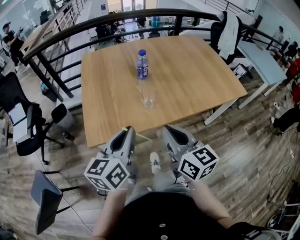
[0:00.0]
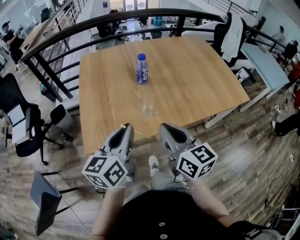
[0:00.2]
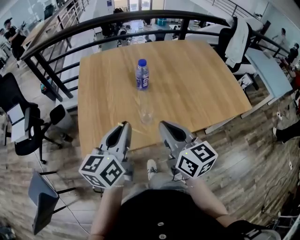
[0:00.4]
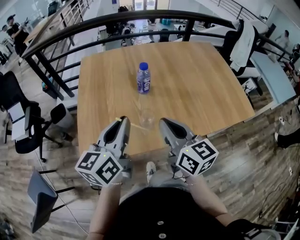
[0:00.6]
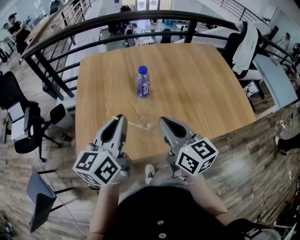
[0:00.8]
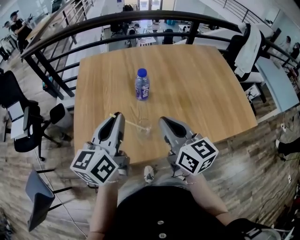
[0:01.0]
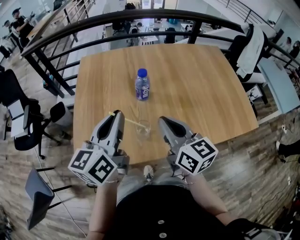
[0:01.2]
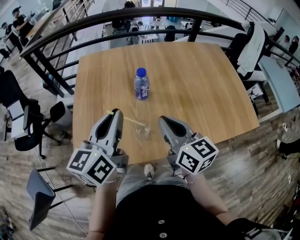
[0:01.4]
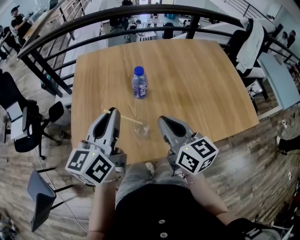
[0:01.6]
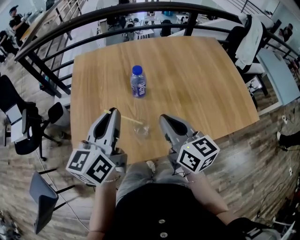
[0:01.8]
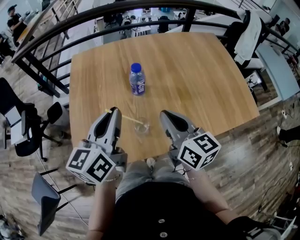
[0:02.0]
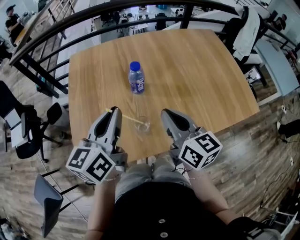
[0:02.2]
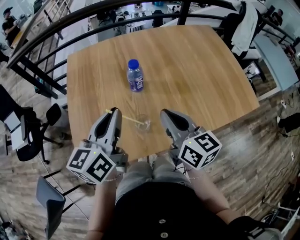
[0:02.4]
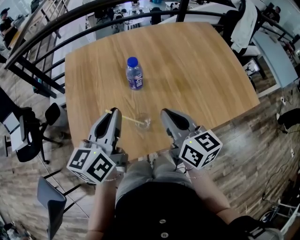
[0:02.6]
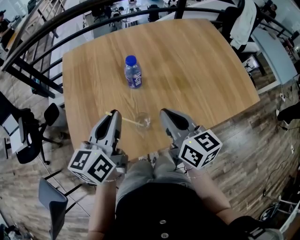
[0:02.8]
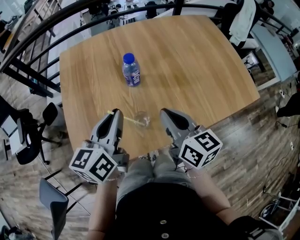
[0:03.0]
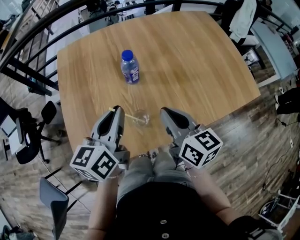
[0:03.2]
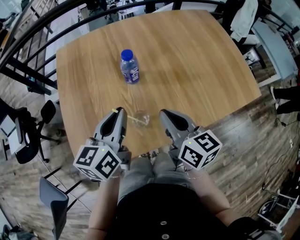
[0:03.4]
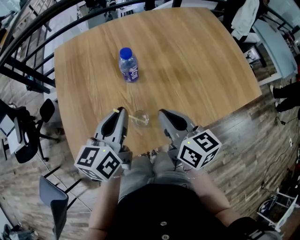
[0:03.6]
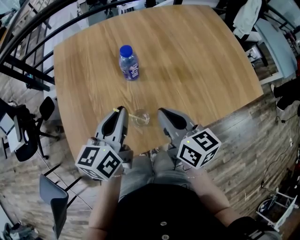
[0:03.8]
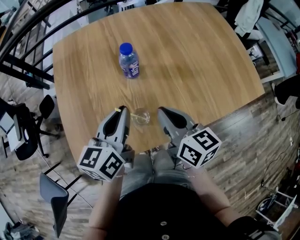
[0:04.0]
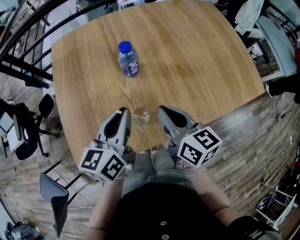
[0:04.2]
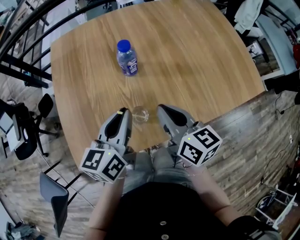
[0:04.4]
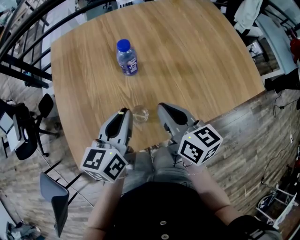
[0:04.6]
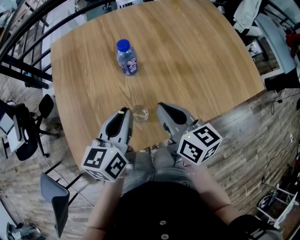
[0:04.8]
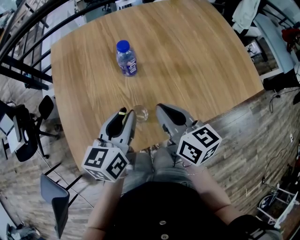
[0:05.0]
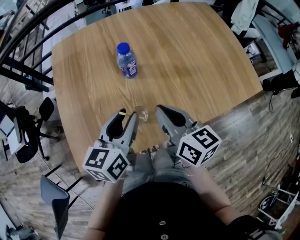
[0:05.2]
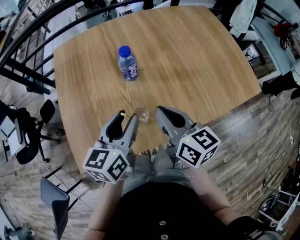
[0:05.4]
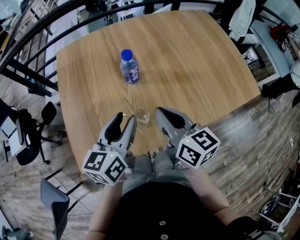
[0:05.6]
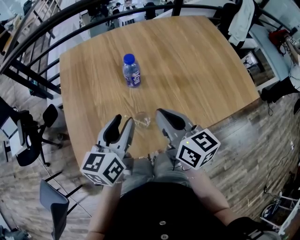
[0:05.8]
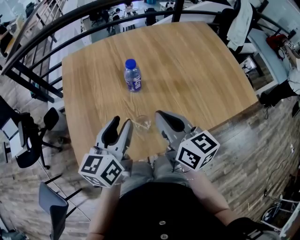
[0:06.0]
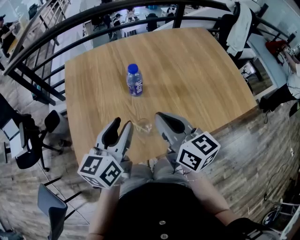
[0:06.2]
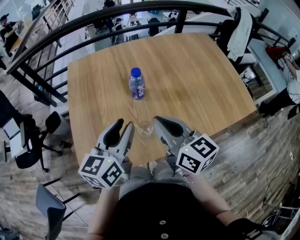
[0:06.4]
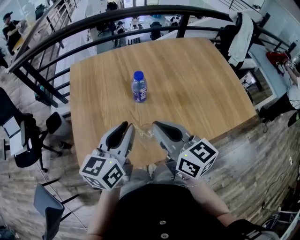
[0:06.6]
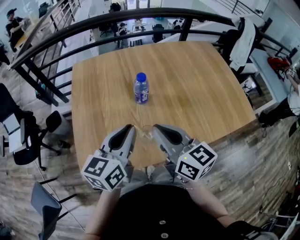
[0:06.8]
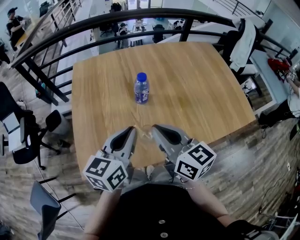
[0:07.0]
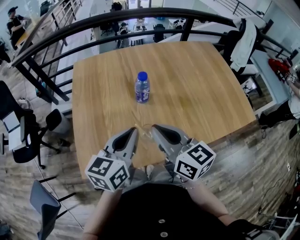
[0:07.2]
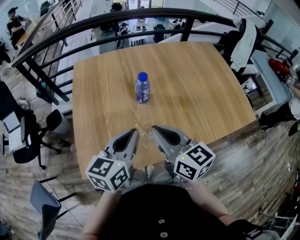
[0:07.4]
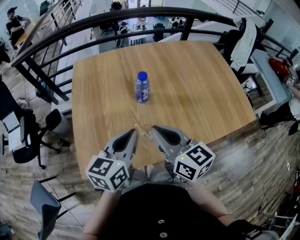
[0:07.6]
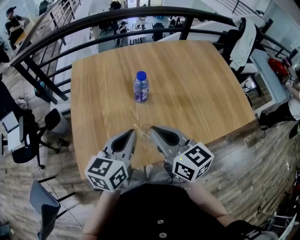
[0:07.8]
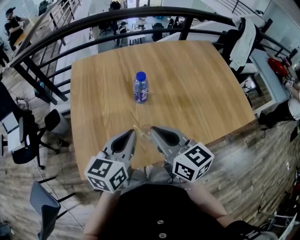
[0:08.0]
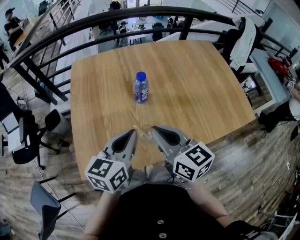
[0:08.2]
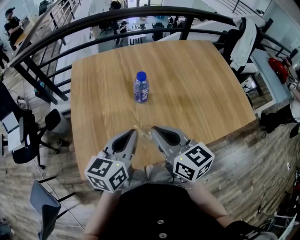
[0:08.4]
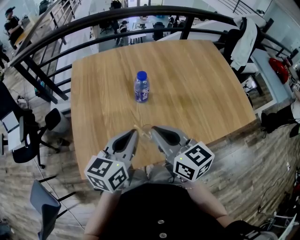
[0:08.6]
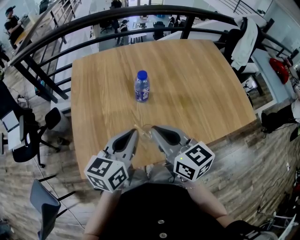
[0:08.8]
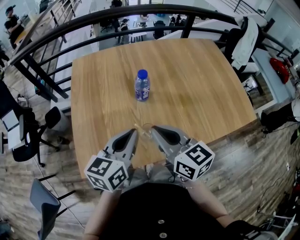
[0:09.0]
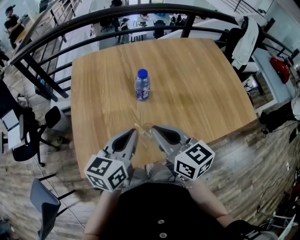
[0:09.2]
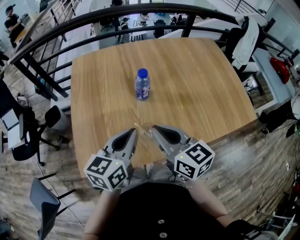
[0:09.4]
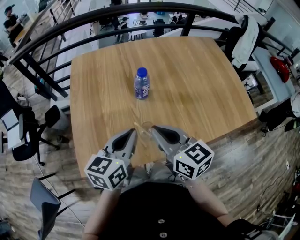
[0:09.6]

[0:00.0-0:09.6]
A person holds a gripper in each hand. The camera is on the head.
0:00.0 to 0:01.6: Both grippers move forward, roughly 25 cm.
0:01.6 to 0:03.2: The left gripper heads downward, covering approximately 5 cm.
0:03.2 to 0:04.8: The left gripper goes some 5 cm downward.
0:04.8 to 0:06.4: The grippers both shift upward by about 10 cm. The left gripper opens.
0:06.4 to 0:08.0: The left gripper closes.
0:08.0 to 0:09.6: The grippers stay close to where they were, moving slightly.

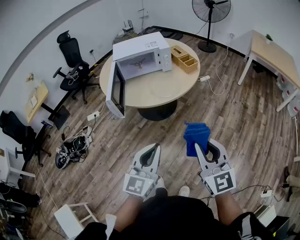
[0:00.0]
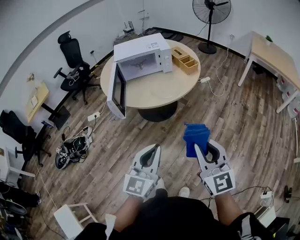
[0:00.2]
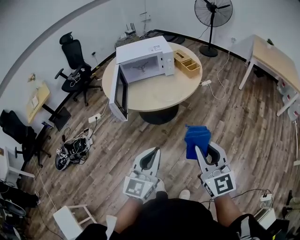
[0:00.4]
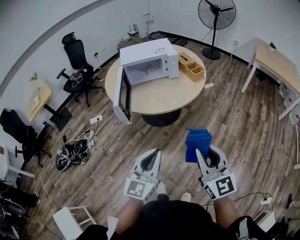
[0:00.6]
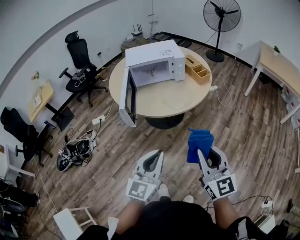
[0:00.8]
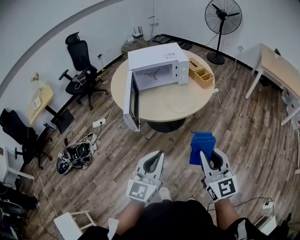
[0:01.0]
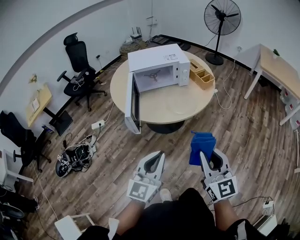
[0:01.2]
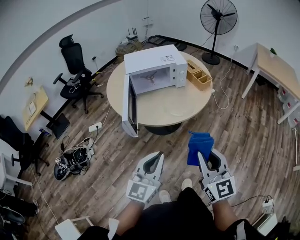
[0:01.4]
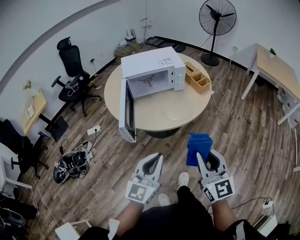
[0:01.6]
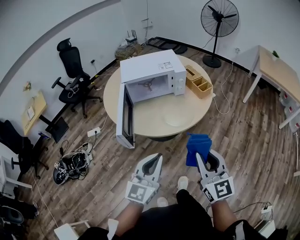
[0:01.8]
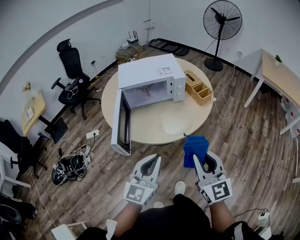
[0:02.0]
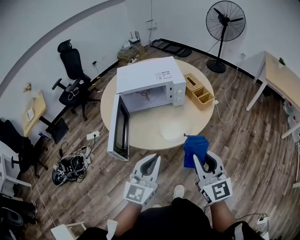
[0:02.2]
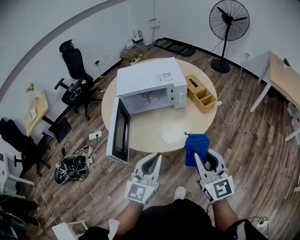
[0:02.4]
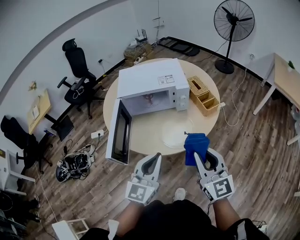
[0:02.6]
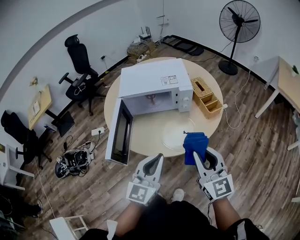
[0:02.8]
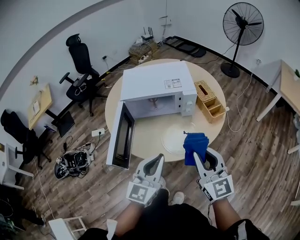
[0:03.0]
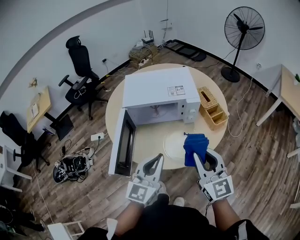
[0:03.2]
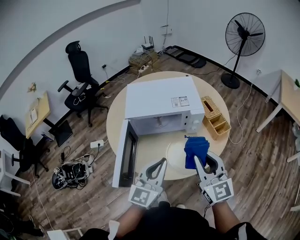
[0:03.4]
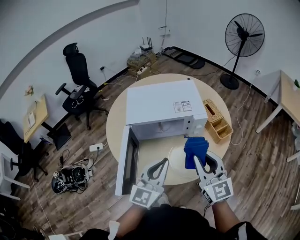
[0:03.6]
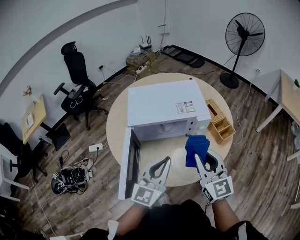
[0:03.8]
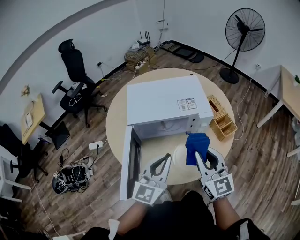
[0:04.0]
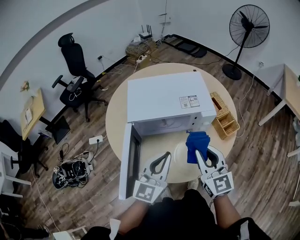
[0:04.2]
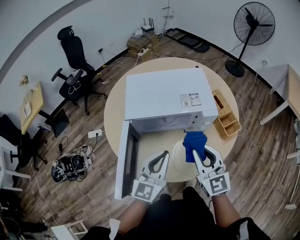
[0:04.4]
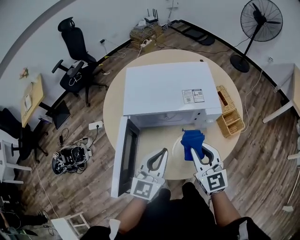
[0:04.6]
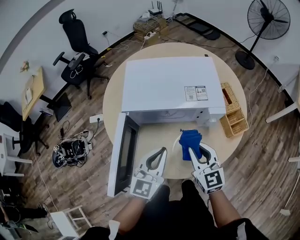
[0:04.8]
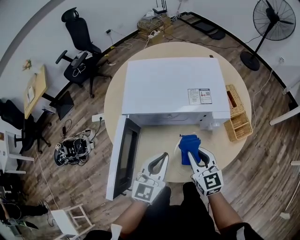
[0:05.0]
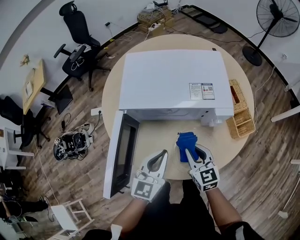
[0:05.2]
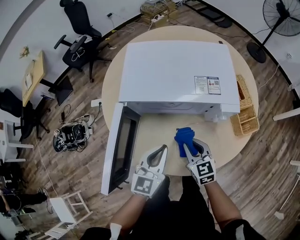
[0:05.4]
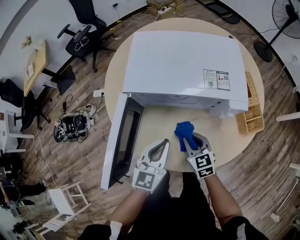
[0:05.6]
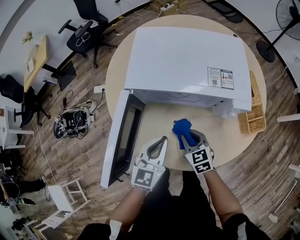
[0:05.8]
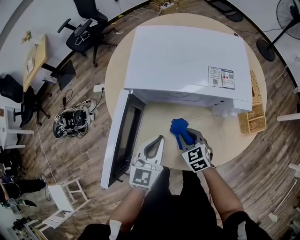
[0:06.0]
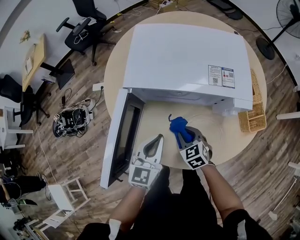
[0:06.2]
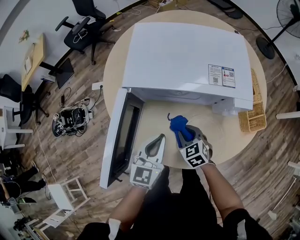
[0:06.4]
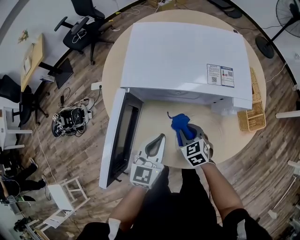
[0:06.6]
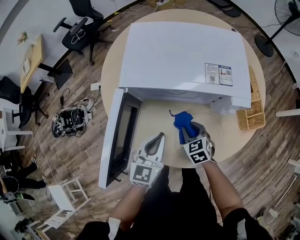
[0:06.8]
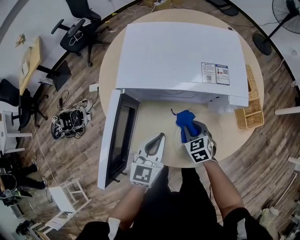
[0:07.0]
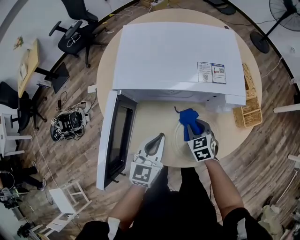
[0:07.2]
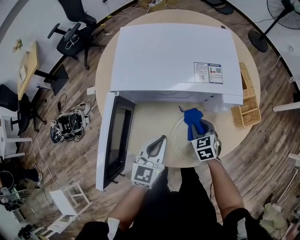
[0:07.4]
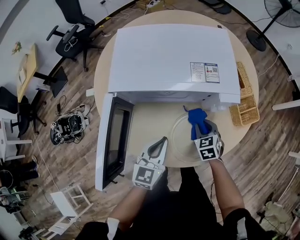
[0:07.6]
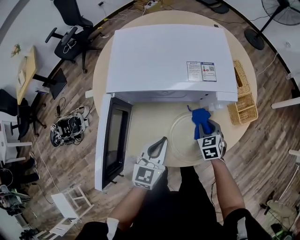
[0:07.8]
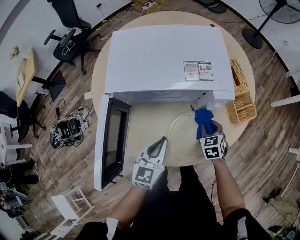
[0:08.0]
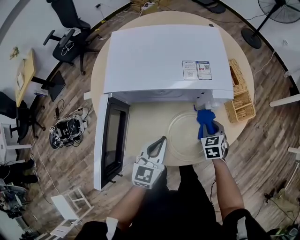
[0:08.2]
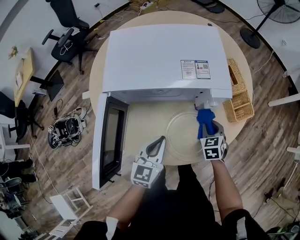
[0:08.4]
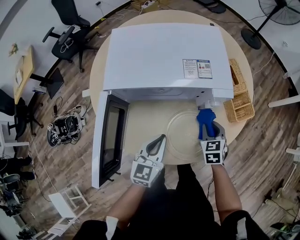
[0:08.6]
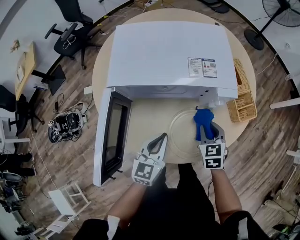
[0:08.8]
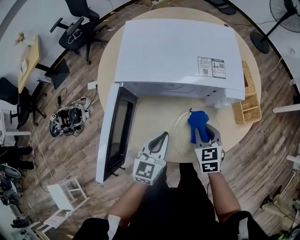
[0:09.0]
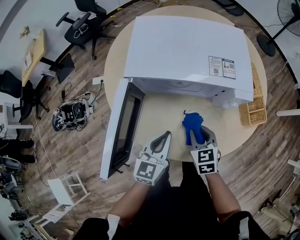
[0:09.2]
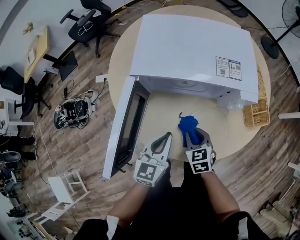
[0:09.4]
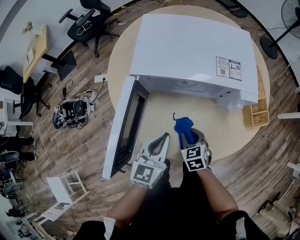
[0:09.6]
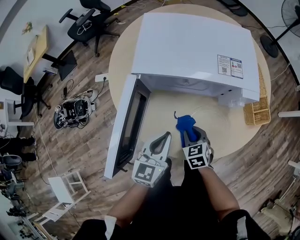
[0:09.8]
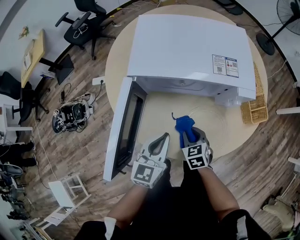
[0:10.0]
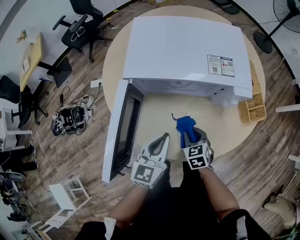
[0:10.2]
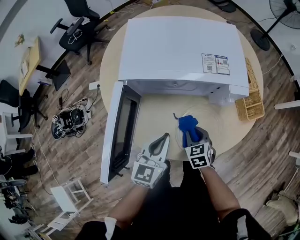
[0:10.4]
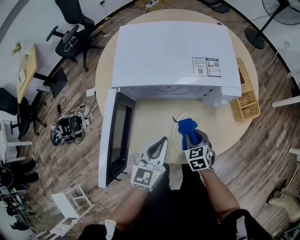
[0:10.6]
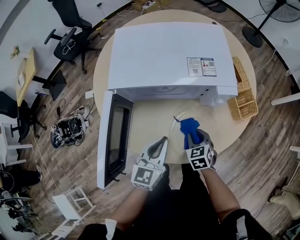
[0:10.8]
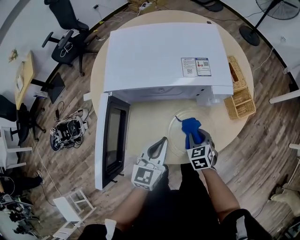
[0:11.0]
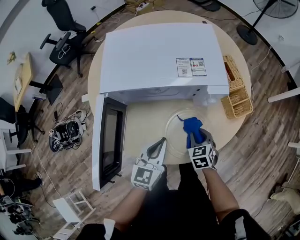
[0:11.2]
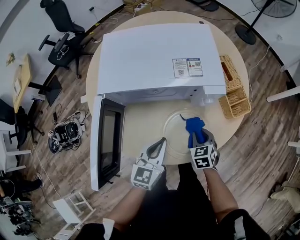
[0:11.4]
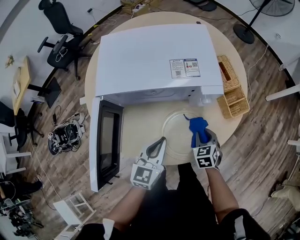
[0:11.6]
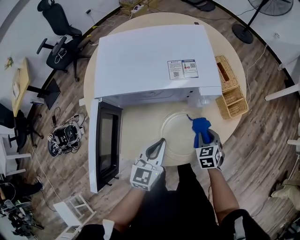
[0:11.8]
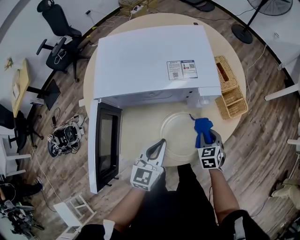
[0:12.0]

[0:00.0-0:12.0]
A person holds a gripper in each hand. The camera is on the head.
0:00.0 to 0:01.6: The grippers both shift forward and to the left by about 15 cm.
0:01.6 to 0:03.0: The two grippers go roughly 25 cm forward.
0:03.0 to 0:04.4: The right gripper shifts some 20 cm forward and to the left. Meanwhile the left gripper goes approximately 15 cm forward.
0:04.4 to 0:06.0: The right gripper is displaced downward by roughly 25 cm, and tilts its fingers about 30 degrees downward. The left gripper shifts some 15 cm downward, and changes its angle by about 20 degrees.
0:06.0 to 0:07.6: The right gripper moves to the right, roughly 15 cm, and changes its angle by some 20 degrees, while the left gripper goes some 5 cm to the right.
0:07.6 to 0:09.0: The right gripper is displaced upward by some 5 cm, and reaches about 5 cm to the right, then returns.
0:09.0 to 0:10.4: The right gripper moves downward, about 5 cm.
0:10.4 to 0:12.0: The right gripper travels to the right by about 15 cm. Meanwhile the left gripper moves to the right, some 5 cm.

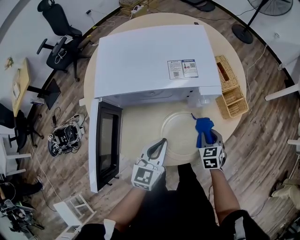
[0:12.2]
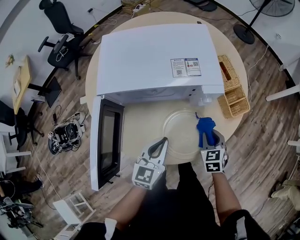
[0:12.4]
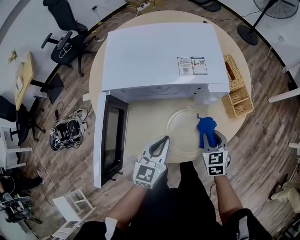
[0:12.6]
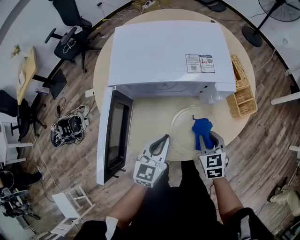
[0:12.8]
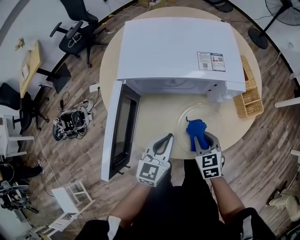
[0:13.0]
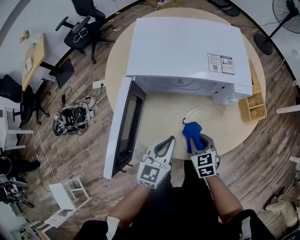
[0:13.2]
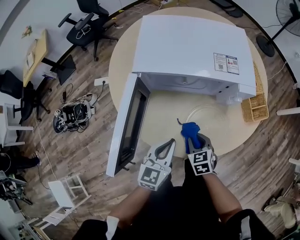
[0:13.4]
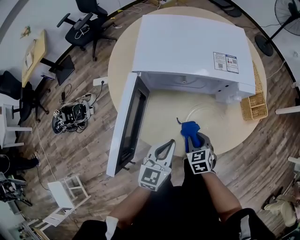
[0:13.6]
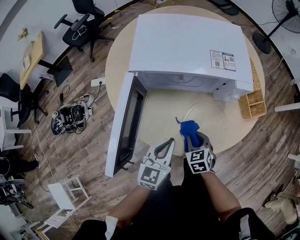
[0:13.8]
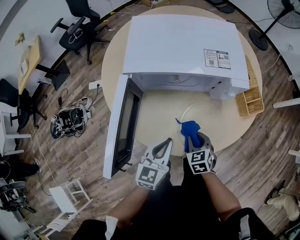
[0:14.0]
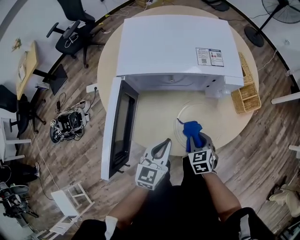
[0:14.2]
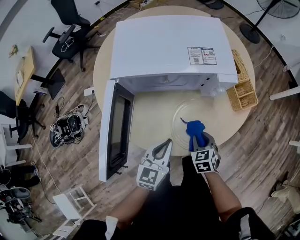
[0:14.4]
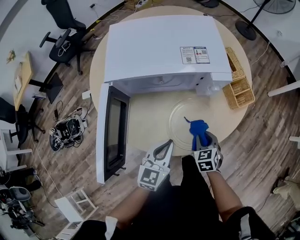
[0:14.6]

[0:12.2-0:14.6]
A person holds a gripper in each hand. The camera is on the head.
0:12.2 to 0:13.4: The right gripper goes some 20 cm to the left, while the left gripper moves to the left and backward, approximately 10 cm.
0:13.4 to 0:14.6: The left gripper goes approximately 5 cm to the right; the right gripper goes about 10 cm to the right.
